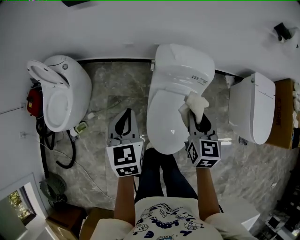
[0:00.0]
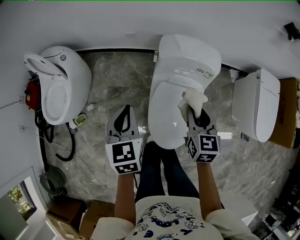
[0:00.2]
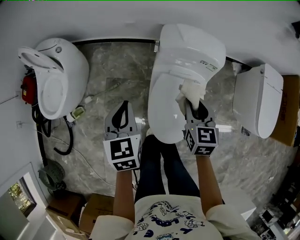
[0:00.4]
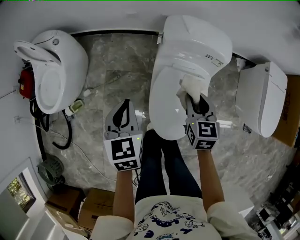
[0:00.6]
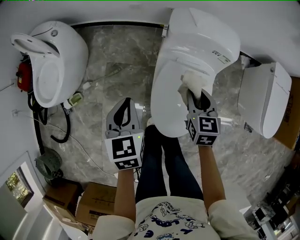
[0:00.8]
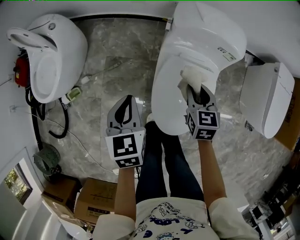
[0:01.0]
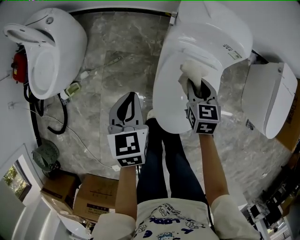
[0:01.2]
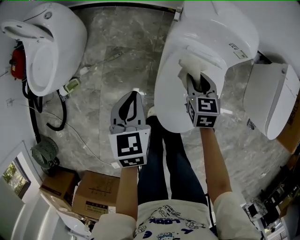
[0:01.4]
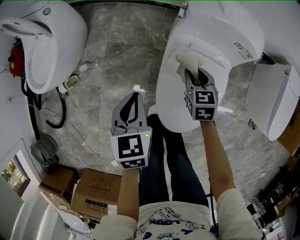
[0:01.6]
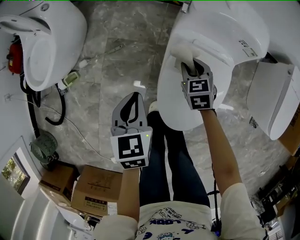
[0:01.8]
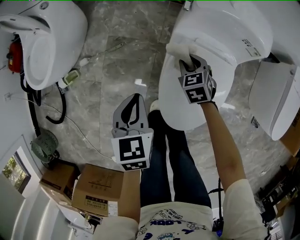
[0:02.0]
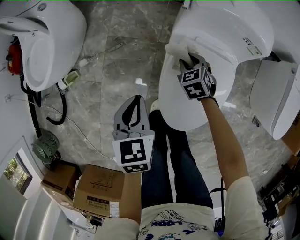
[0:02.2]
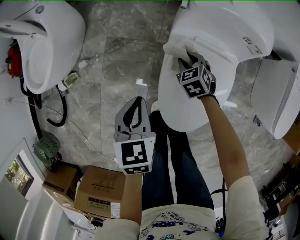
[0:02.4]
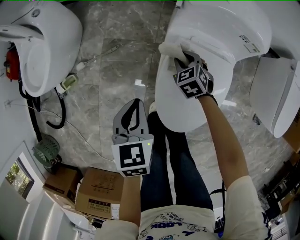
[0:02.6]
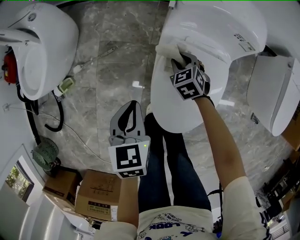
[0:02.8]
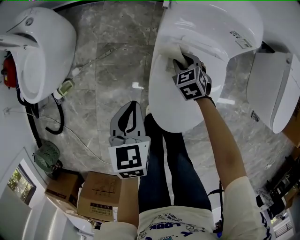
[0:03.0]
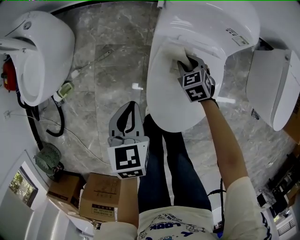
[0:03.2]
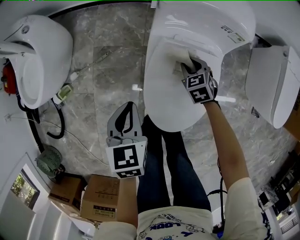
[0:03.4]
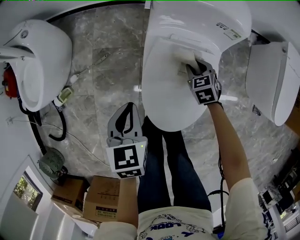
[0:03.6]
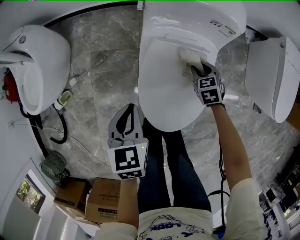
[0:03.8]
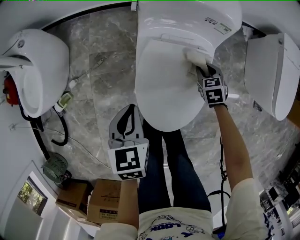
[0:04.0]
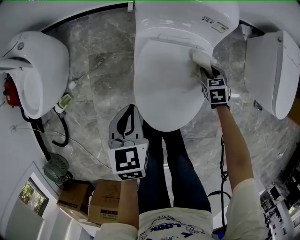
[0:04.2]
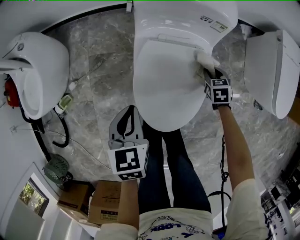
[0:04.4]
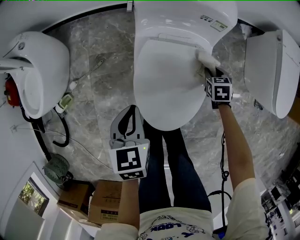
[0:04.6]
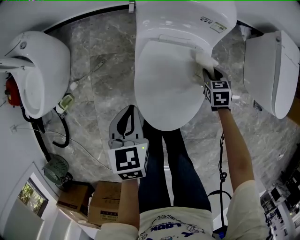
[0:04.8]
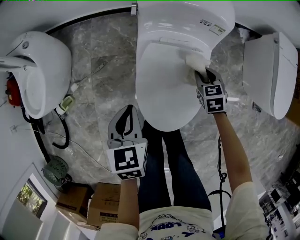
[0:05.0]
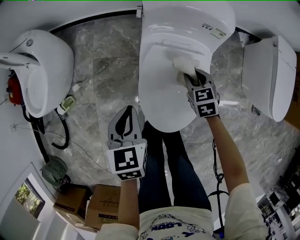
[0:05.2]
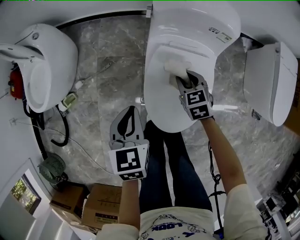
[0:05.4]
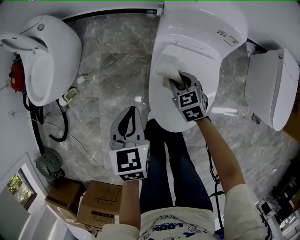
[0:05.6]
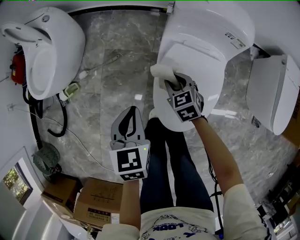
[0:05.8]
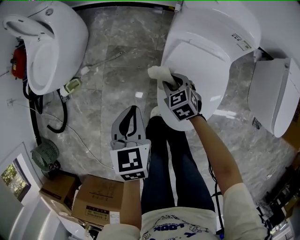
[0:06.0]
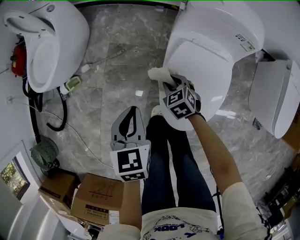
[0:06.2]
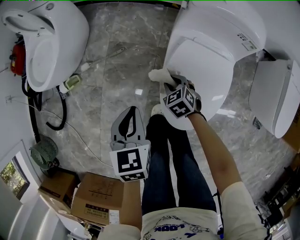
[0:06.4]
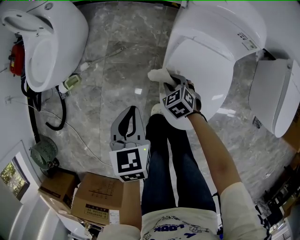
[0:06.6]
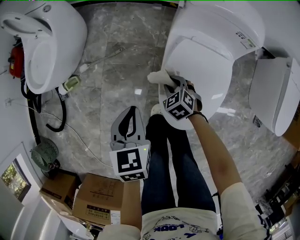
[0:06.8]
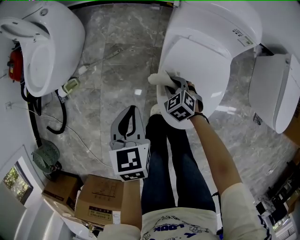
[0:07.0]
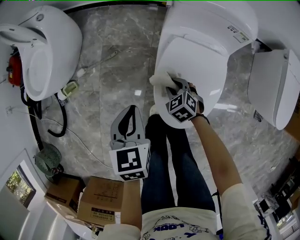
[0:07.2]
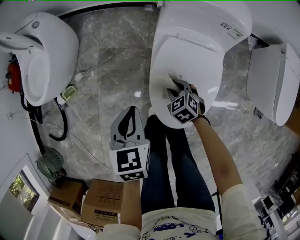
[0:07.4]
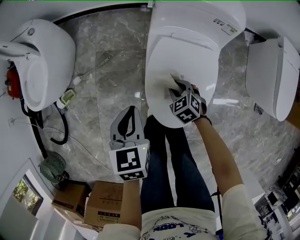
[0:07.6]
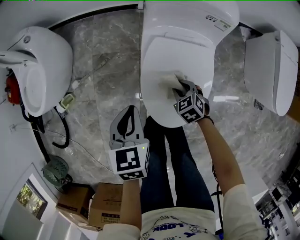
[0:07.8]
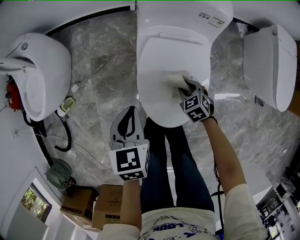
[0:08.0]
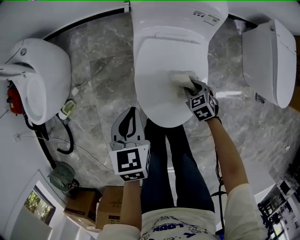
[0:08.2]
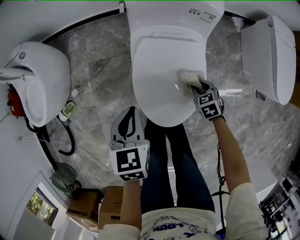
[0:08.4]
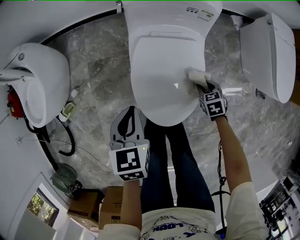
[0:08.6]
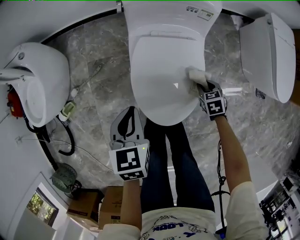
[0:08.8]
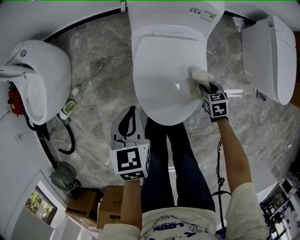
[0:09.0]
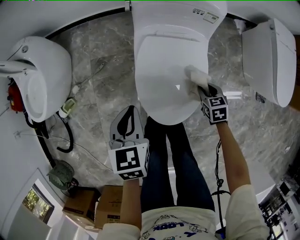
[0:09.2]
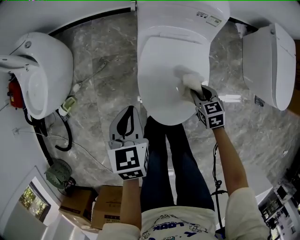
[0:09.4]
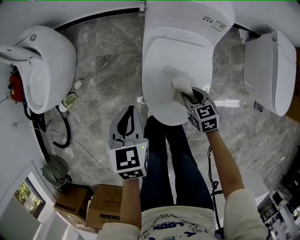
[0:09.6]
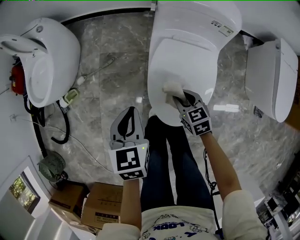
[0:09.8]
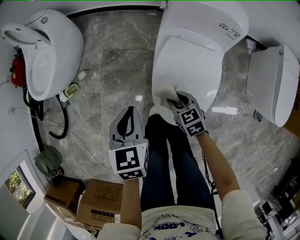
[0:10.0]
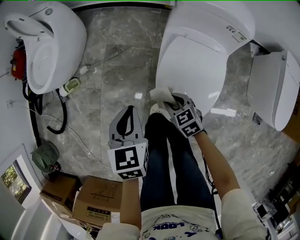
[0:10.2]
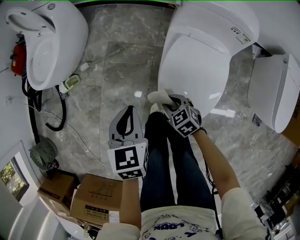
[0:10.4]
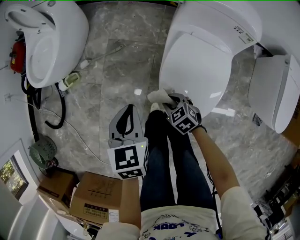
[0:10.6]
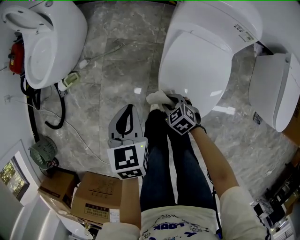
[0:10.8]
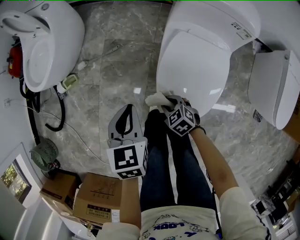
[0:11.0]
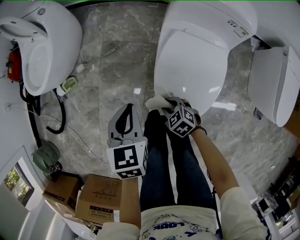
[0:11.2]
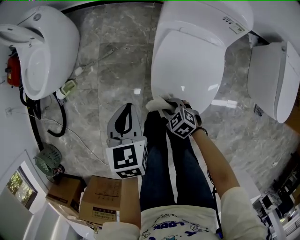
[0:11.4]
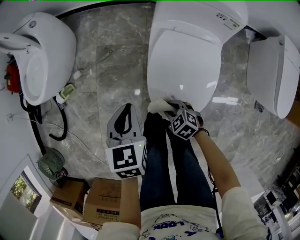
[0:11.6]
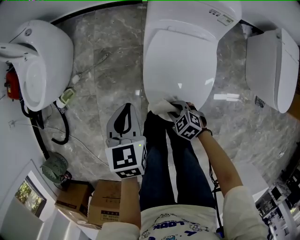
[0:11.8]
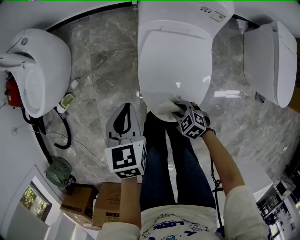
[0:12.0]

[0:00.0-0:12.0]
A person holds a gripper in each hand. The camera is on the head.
0:00.0 to 0:01.6: Both grippers move downward, roughly 30 cm. The right gripper rotates some 30 degrees.
0:01.6 to 0:03.0: The right gripper moves downward, roughly 10 cm, and turns by some 20 degrees, while the left gripper ends up about 5 cm from where it was.
0:03.0 to 0:04.4: The right gripper travels to the right by about 25 cm, and rotates some 30 degrees; the left gripper shifts approximately 10 cm to the right.
0:04.4 to 0:06.0: The right gripper moves about 35 cm, and changes its angle by about 30 degrees, while the left gripper changes place by some 15 cm.
0:06.0 to 0:07.6: The left gripper is displaced to the right by approximately 5 cm, while the right gripper shifts about 10 cm to the right and backward.
0:07.6 to 0:09.0: The left gripper moves to the right, approximately 5 cm; the right gripper moves to the right, approximately 20 cm, and changes its angle by roughly 30 degrees.
0:09.0 to 0:10.4: The left gripper changes place by roughly 15 cm; the right gripper ends up roughly 30 cm from where it was, and changes its angle by approximately 40 degrees.
0:10.4 to 0:12.0: The left gripper heads to the right, covering approximately 10 cm. The right gripper shifts some 10 cm backward and to the right.

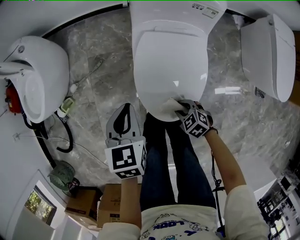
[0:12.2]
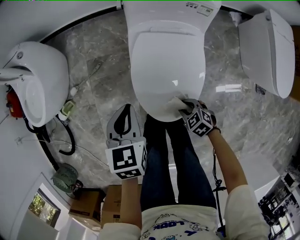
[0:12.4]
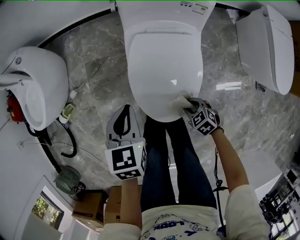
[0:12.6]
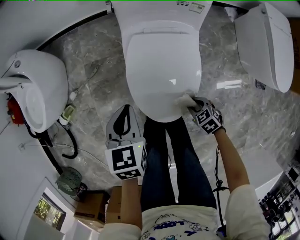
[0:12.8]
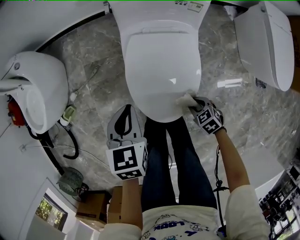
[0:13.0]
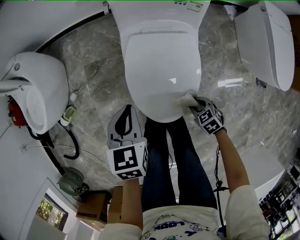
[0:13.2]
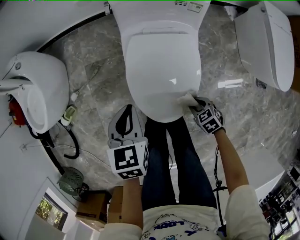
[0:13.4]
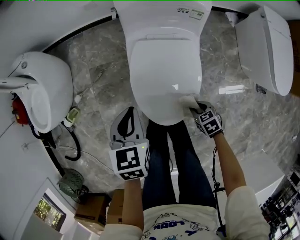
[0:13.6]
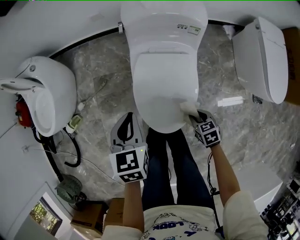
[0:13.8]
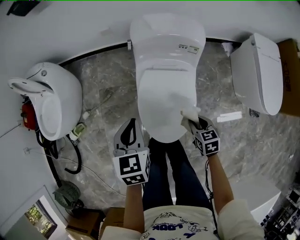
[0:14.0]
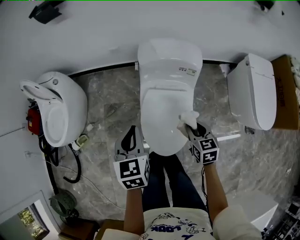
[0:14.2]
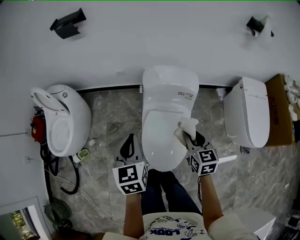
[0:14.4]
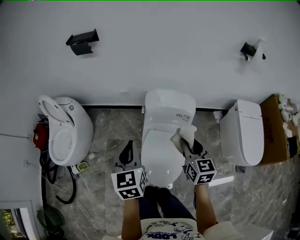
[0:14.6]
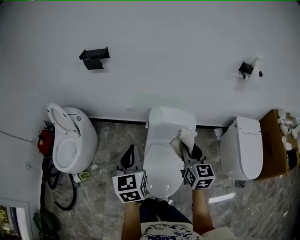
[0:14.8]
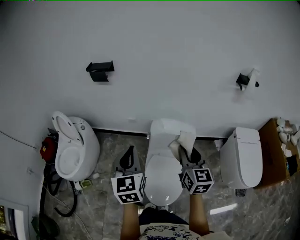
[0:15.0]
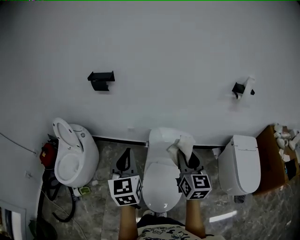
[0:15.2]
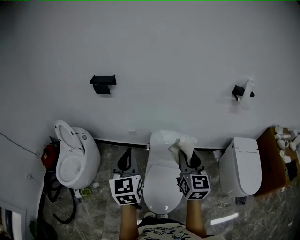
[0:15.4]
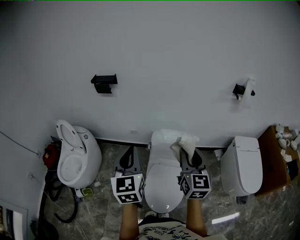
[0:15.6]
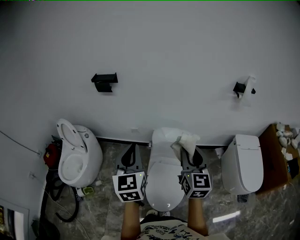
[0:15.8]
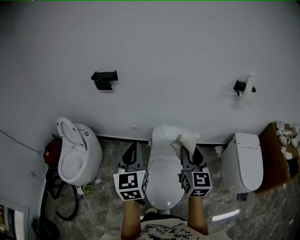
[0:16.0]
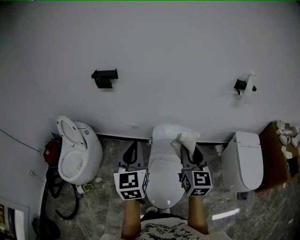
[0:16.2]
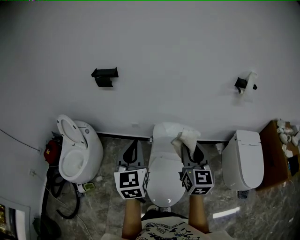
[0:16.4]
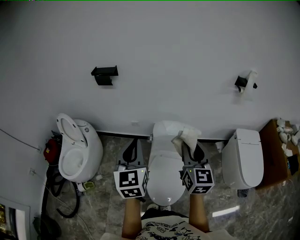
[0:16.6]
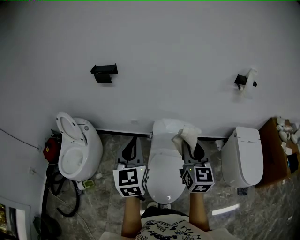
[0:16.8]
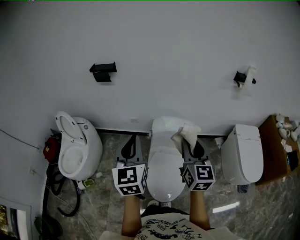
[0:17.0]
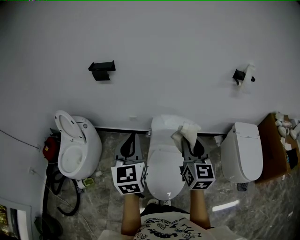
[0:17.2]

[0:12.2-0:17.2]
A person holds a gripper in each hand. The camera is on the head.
0:12.2 to 0:13.8: The right gripper is displaced to the right and upward by some 15 cm, and rotates approximately 30 degrees. The left gripper travels upward by some 5 cm.
0:13.8 to 0:15.6: Both grippers move upward, roughly 60 cm. The right gripper angles its fingers upward, by roughly 60 degrees; the left gripper points its fingers some 40 degrees further upward.
0:15.6 to 0:17.2: The grippers move only a little.

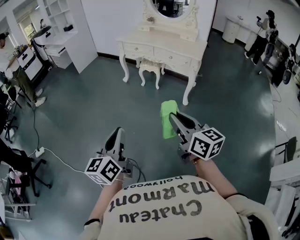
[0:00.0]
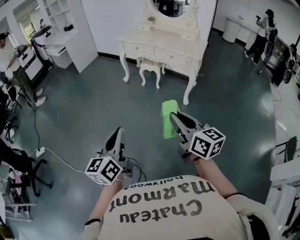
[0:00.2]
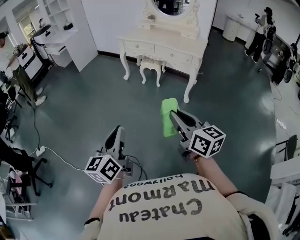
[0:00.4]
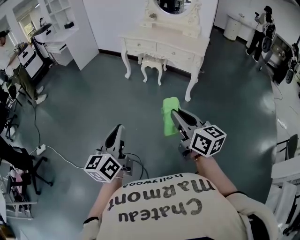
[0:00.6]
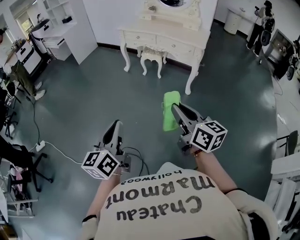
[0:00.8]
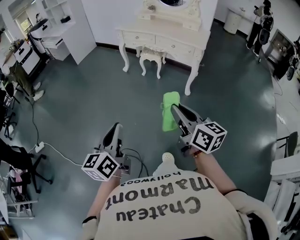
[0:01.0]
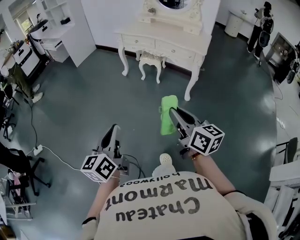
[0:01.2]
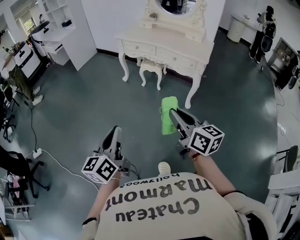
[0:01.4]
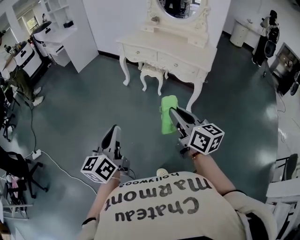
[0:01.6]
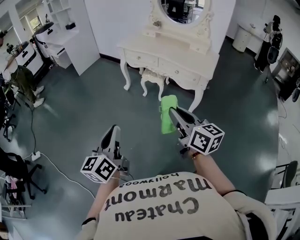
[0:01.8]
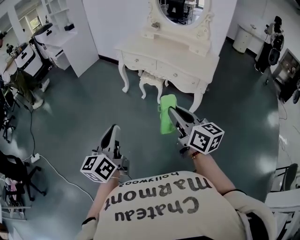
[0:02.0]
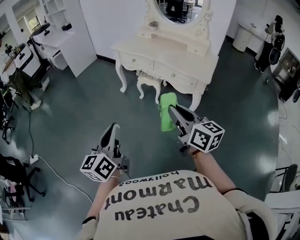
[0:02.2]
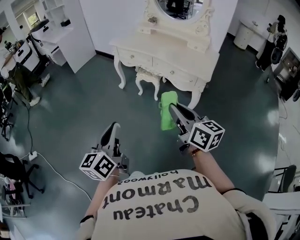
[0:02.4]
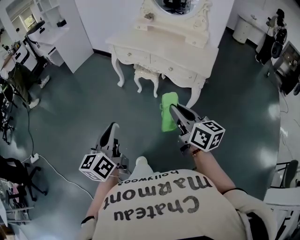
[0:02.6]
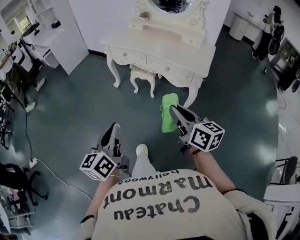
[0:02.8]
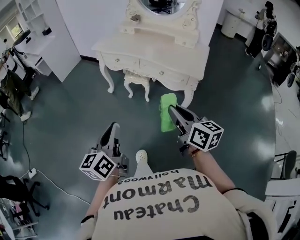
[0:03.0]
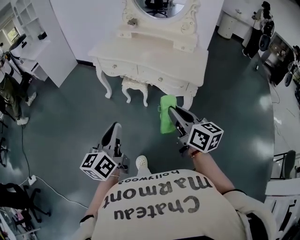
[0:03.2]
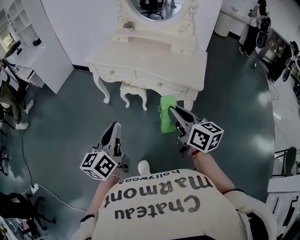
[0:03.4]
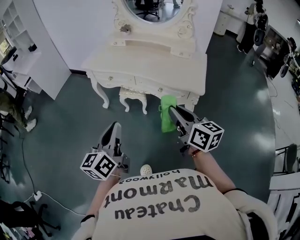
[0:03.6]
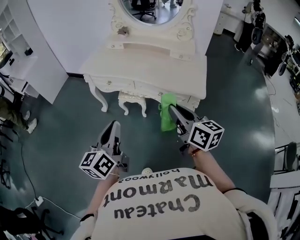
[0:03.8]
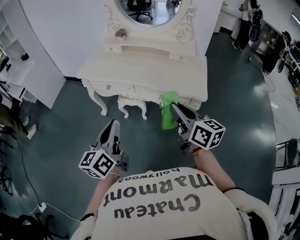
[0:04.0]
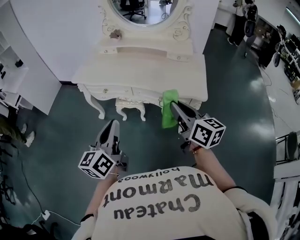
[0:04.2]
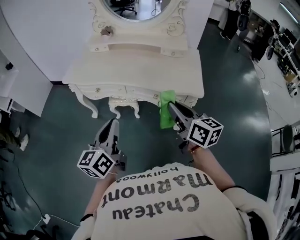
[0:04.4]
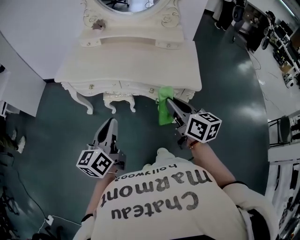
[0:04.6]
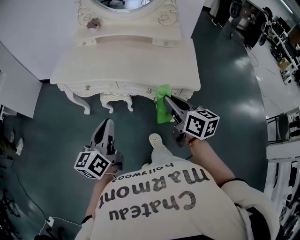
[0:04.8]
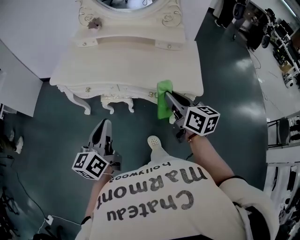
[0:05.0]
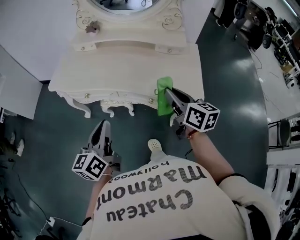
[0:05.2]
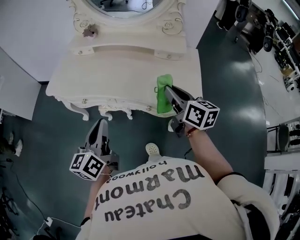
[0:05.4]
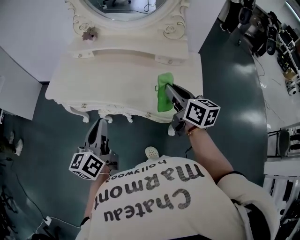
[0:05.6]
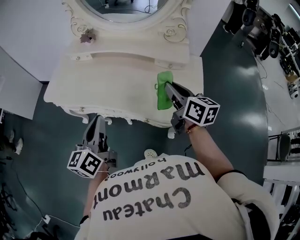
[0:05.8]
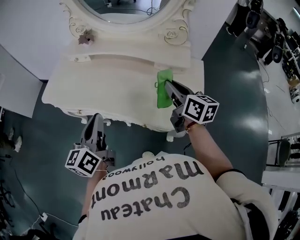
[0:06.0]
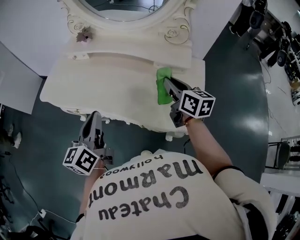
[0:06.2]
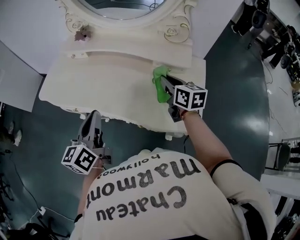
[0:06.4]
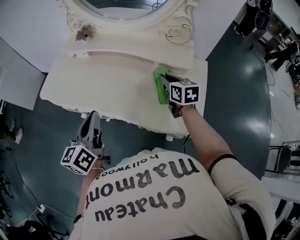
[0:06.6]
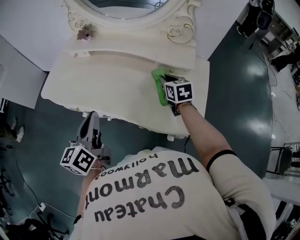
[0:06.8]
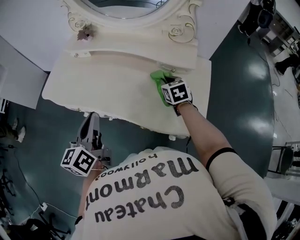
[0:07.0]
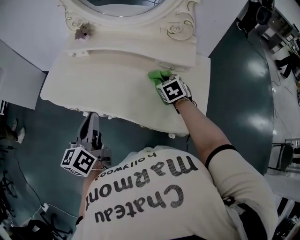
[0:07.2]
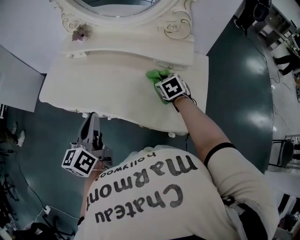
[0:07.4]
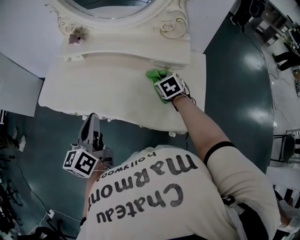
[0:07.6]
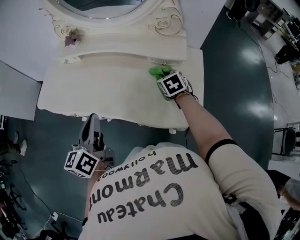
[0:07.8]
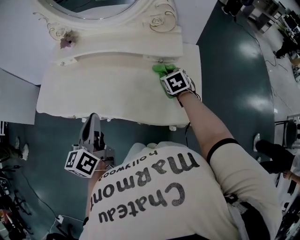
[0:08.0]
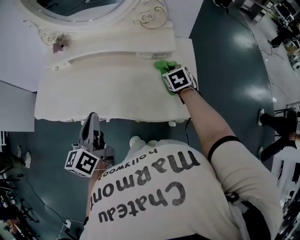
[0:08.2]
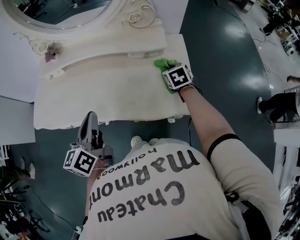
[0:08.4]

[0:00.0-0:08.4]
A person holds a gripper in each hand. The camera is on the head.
0:00.0 to 0:01.4: The grippers both shift forward by approximately 10 cm.
0:01.4 to 0:02.8: The grippers both shift forward and to the right by approximately 25 cm.
0:02.8 to 0:04.2: Both grippers travel together forward, roughly 30 cm.
0:04.2 to 0:05.6: The two grippers go approximately 20 cm forward.
0:05.6 to 0:07.0: The right gripper goes approximately 25 cm downward and forward, and rotates approximately 40 degrees, while the left gripper travels forward by about 10 cm.
0:07.0 to 0:08.4: The left gripper changes place by roughly 5 cm. Meanwhile the right gripper heads to the right, covering about 15 cm.
